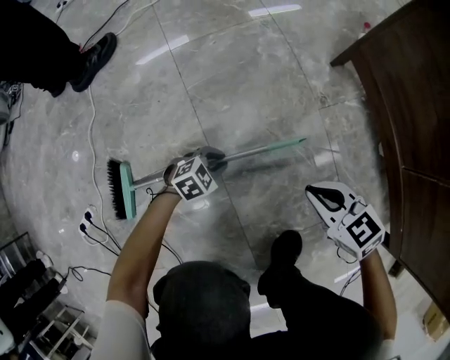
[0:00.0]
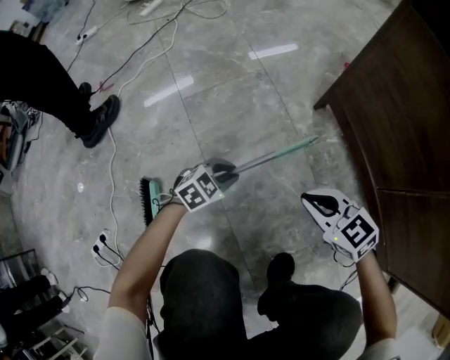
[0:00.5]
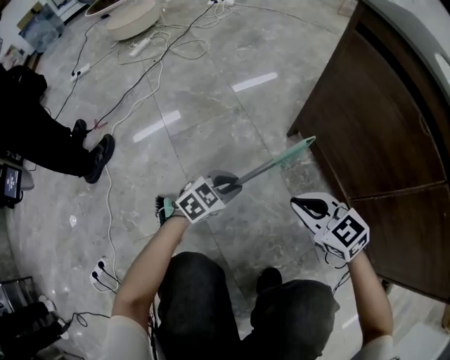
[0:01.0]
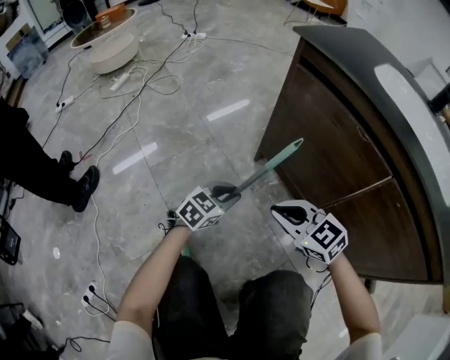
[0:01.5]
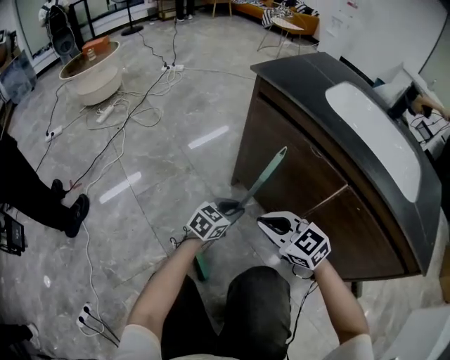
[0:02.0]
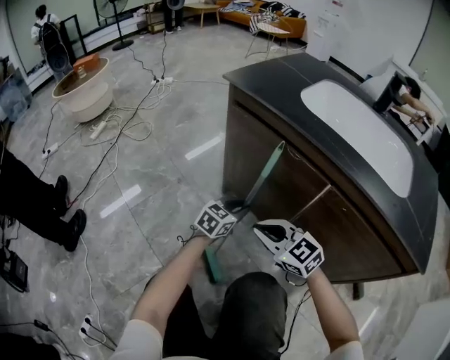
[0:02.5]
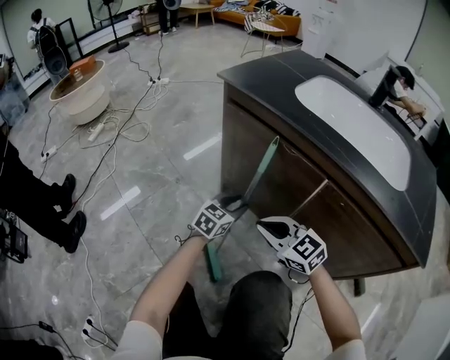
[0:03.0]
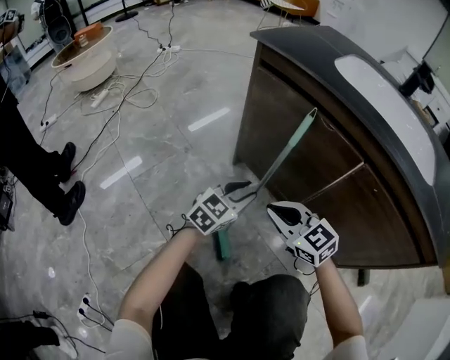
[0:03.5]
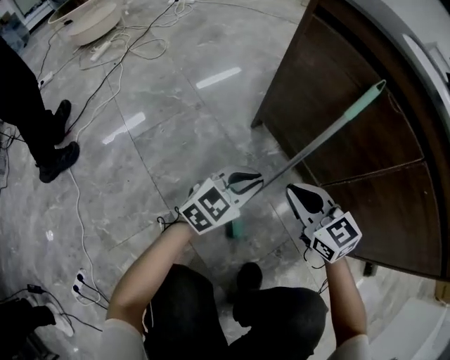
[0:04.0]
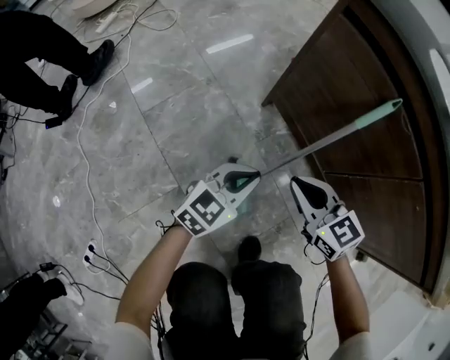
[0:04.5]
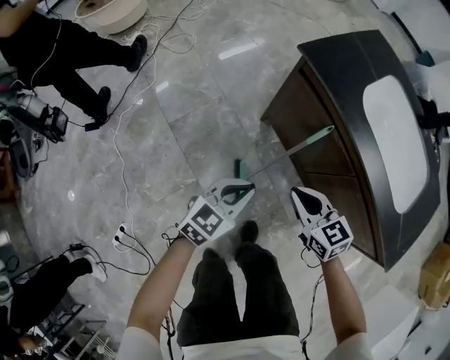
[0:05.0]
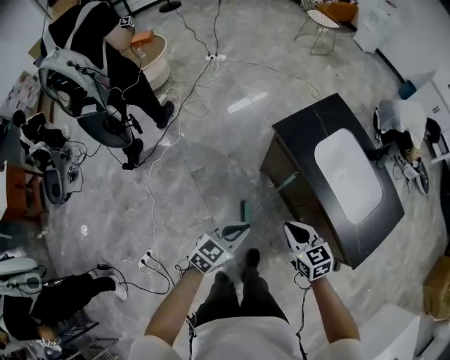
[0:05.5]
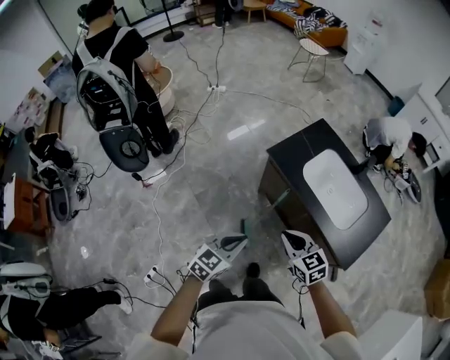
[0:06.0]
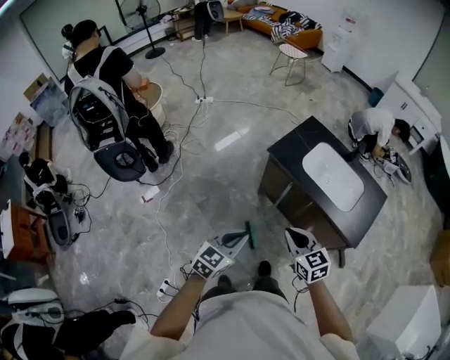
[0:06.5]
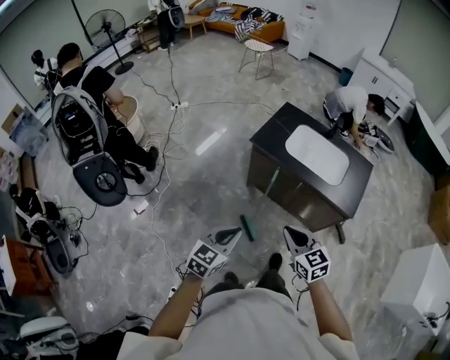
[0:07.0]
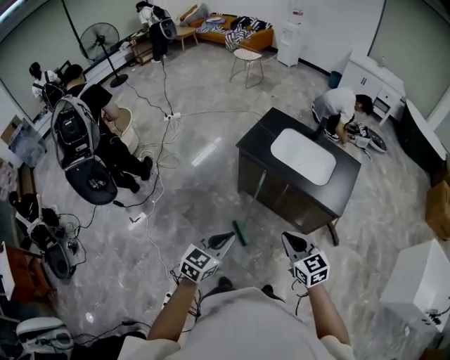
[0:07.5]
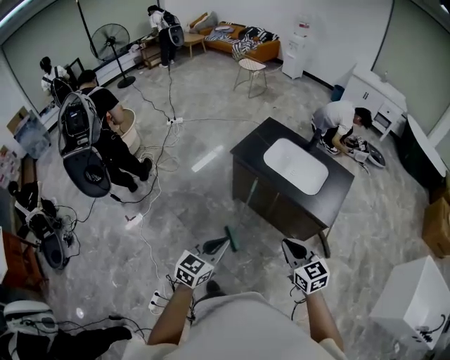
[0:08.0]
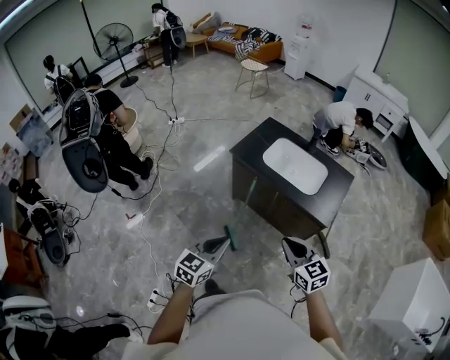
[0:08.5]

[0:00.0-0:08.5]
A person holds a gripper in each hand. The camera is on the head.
0:00.0 to 0:02.0: The two grippers go about 35 cm upward. The left gripper points its fingers roughly 30 degrees further upward; the right gripper rotates about 30 degrees.
0:02.0 to 0:04.0: The right gripper shifts some 10 cm downward; the left gripper moves roughly 5 cm to the right and comes back.
0:04.0 to 0:06.5: Both grippers move upward, approximately 70 cm.
0:06.5 to 0:08.5: The left gripper shifts approximately 20 cm backward and upward; the right gripper is displaced backward, to the right and upward by about 25 cm.

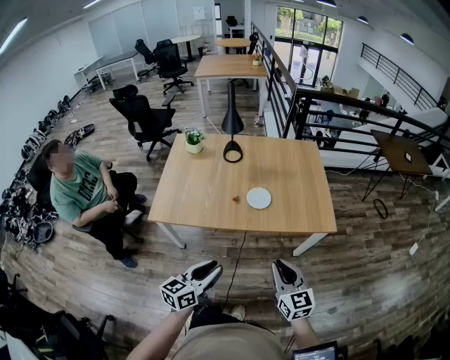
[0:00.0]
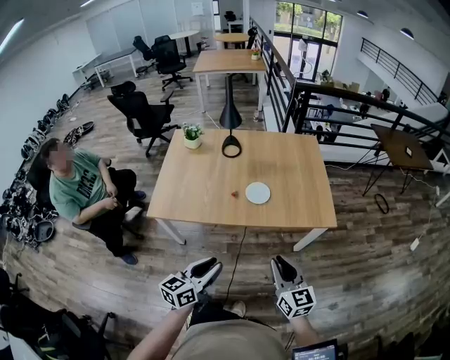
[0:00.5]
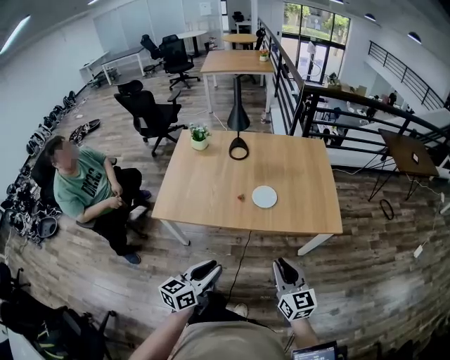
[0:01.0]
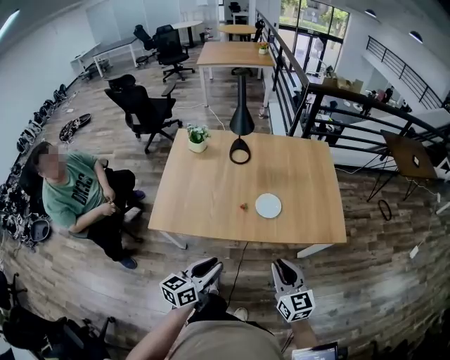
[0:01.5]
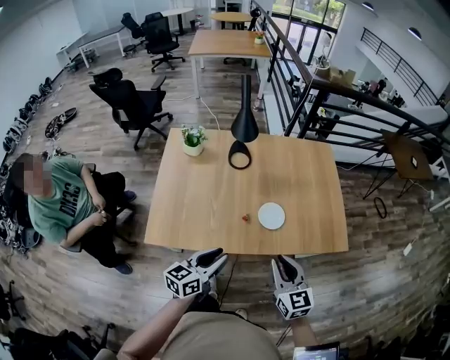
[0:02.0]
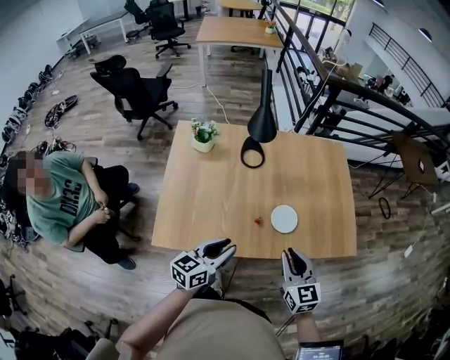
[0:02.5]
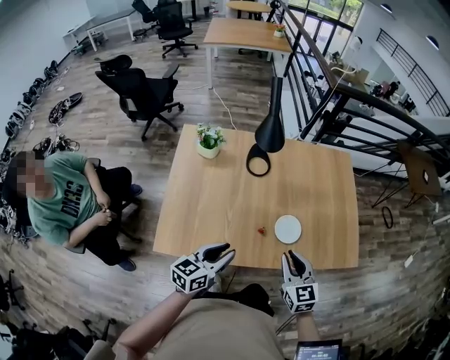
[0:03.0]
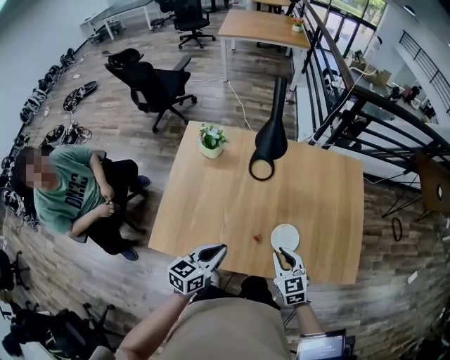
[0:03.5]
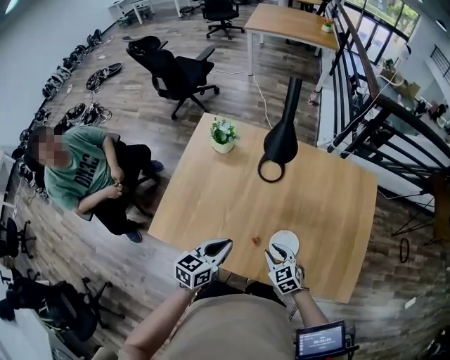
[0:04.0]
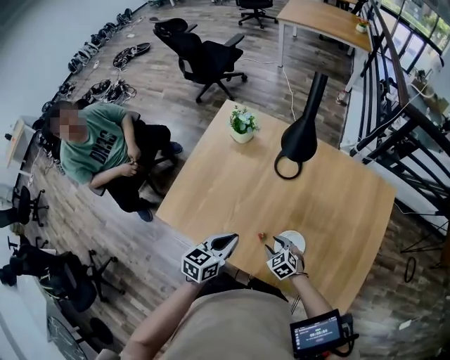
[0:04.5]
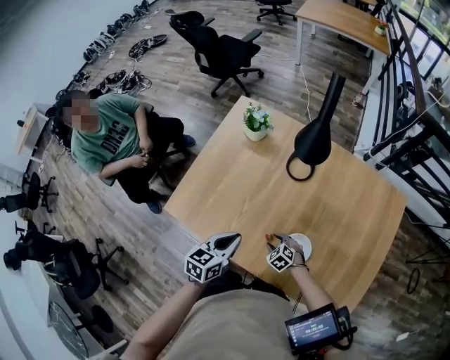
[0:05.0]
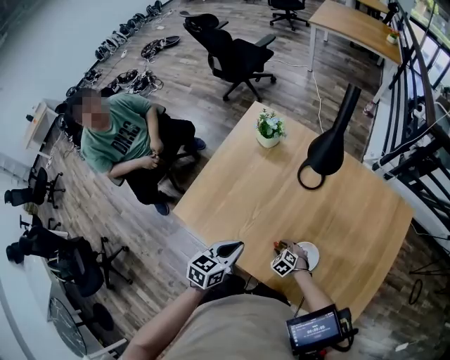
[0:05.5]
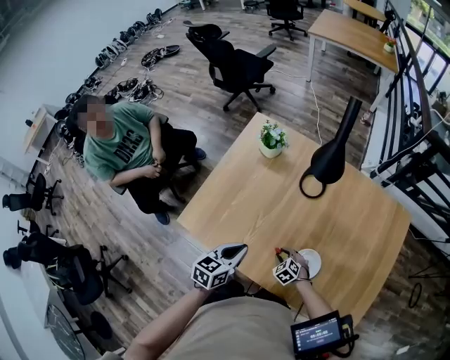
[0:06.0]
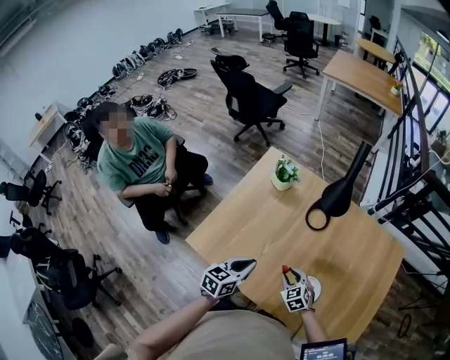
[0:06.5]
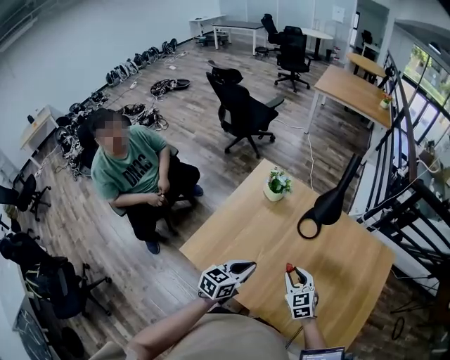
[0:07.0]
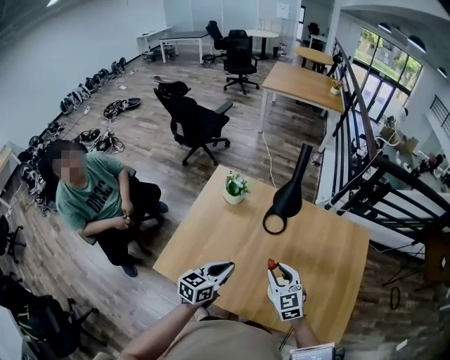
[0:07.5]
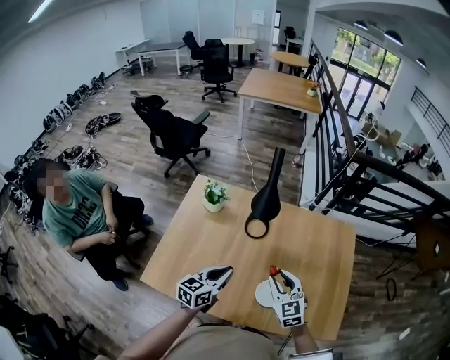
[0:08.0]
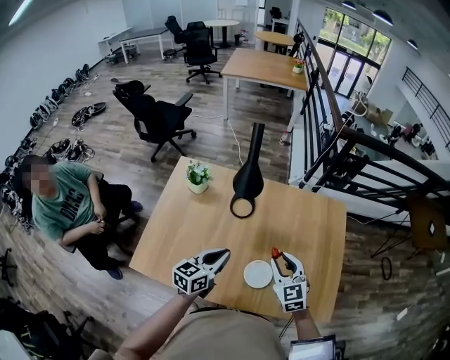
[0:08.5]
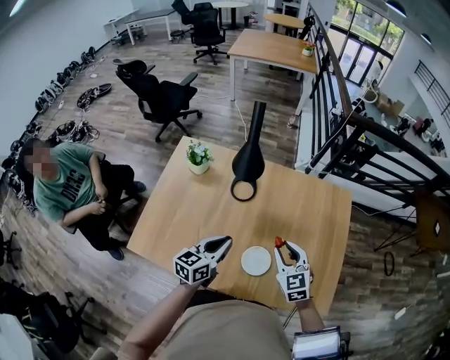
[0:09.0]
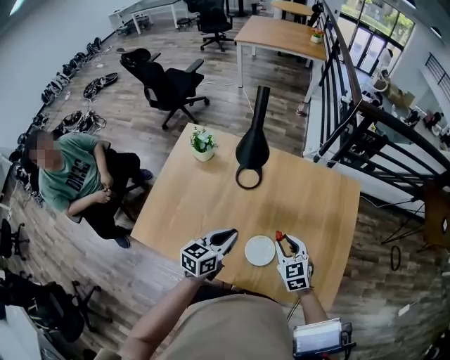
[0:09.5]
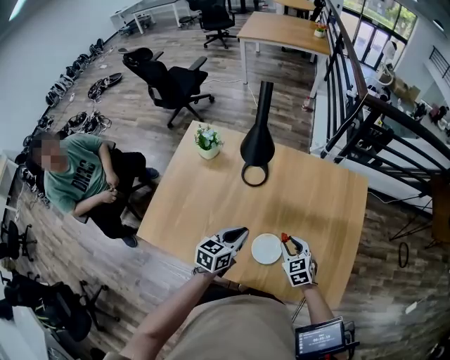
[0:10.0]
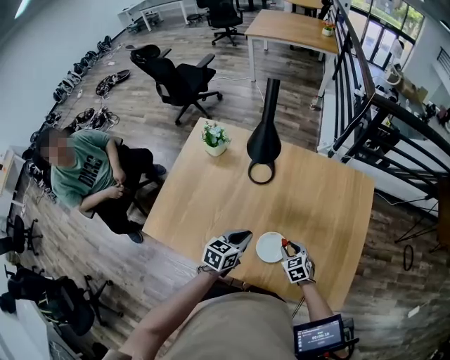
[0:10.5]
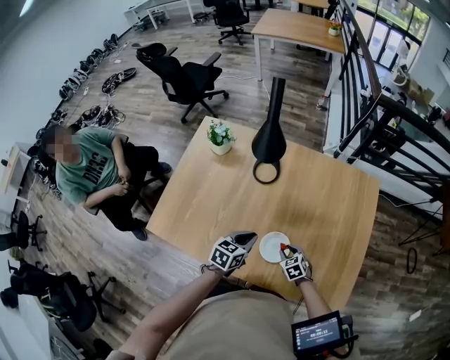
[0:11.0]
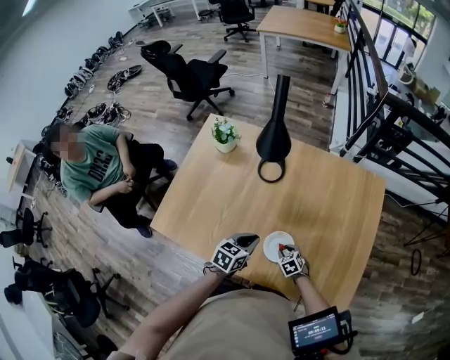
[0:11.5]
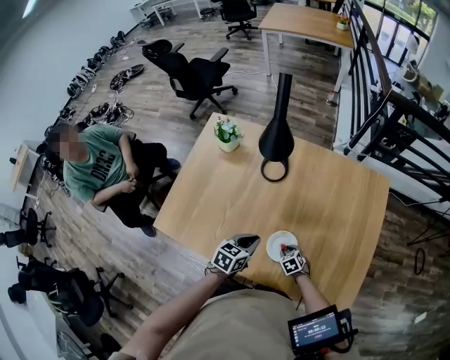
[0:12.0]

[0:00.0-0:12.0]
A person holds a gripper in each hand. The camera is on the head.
0:00.0 to 0:02.0: The grippers both shift forward and to the left by about 25 cm.
0:02.0 to 0:04.0: The left gripper changes place by approximately 20 cm, changes its angle by some 20 degrees, and closes up. Meanwhile the right gripper changes place by approximately 30 cm, and rotates approximately 40 degrees.
0:04.0 to 0:06.0: The right gripper is displaced downward by about 15 cm, and rotates roughly 30 degrees. Meanwhile the left gripper moves roughly 5 cm.
0:06.0 to 0:08.0: The left gripper is displaced upward, to the right and forward by approximately 10 cm, and turns by approximately 20 degrees. Meanwhile the right gripper heads upward, covering approximately 35 cm, and tips its fingers upward by approximately 40 degrees.
0:08.0 to 0:10.0: The left gripper moves to the right and downward, approximately 15 cm. The right gripper travels downward and to the right by roughly 20 cm.
0:10.0 to 0:12.0: The left gripper travels downward by about 10 cm, while the right gripper moves downward, some 20 cm, and changes its angle by about 30 degrees.

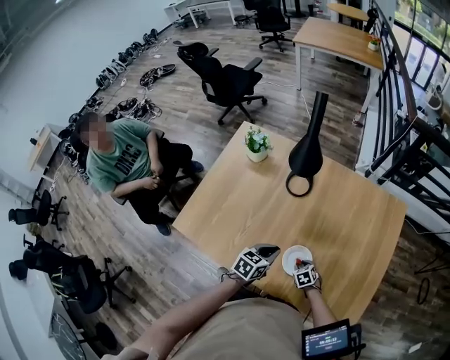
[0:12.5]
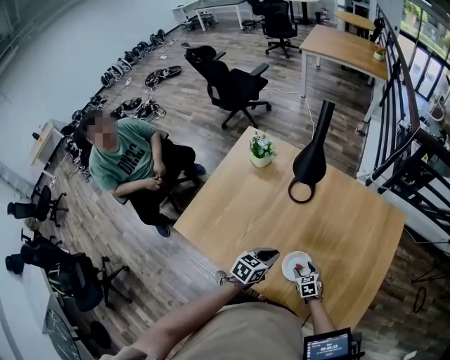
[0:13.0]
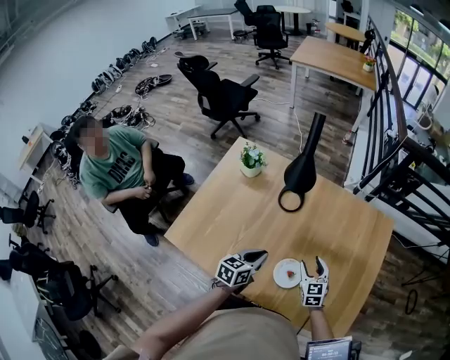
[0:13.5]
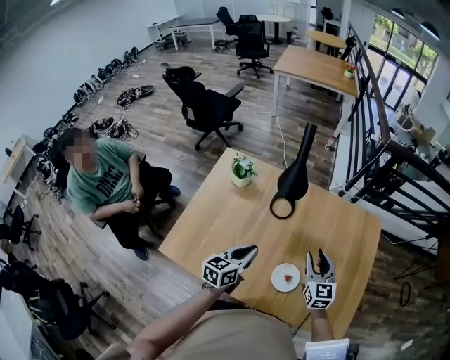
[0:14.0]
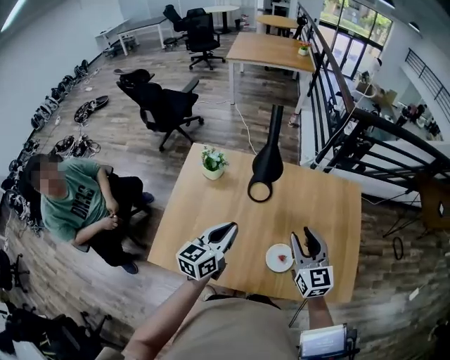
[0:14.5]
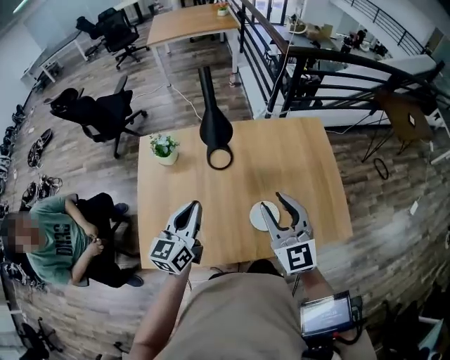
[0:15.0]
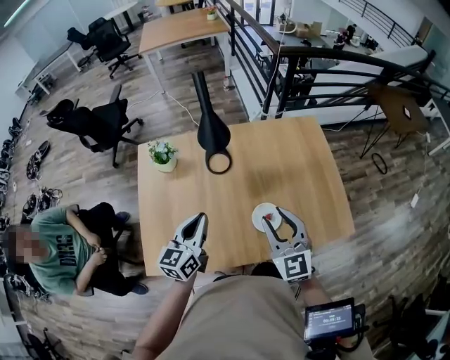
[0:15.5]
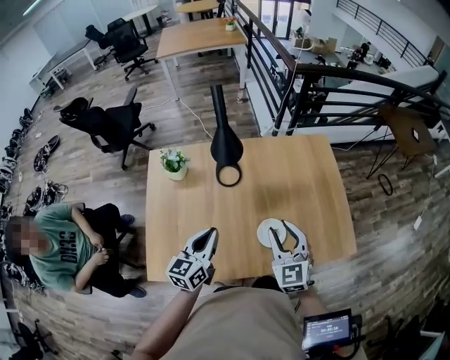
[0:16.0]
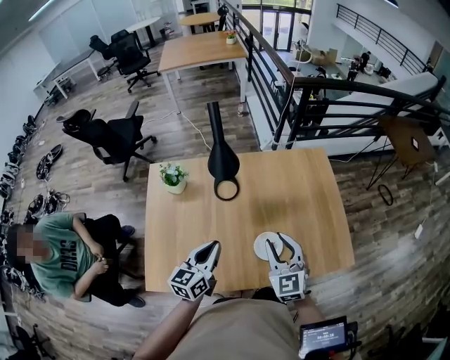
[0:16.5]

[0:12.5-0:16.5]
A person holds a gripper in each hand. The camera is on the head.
0:12.5 to 0:14.5: The left gripper is displaced upward and to the left by approximately 25 cm, and turns by roughly 30 degrees, while the right gripper heads upward, covering some 50 cm, and angles its fingers upward, by approximately 60 degrees.
0:14.5 to 0:16.5: The right gripper shifts roughly 5 cm backward. The left gripper changes place by about 5 cm.

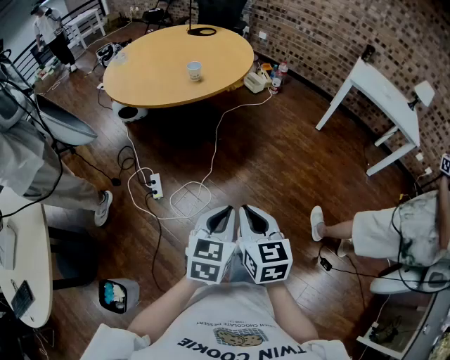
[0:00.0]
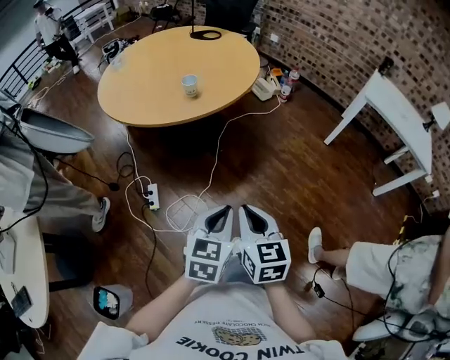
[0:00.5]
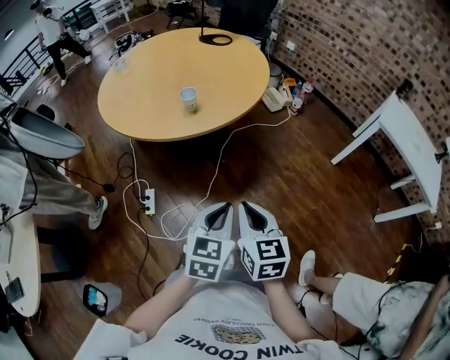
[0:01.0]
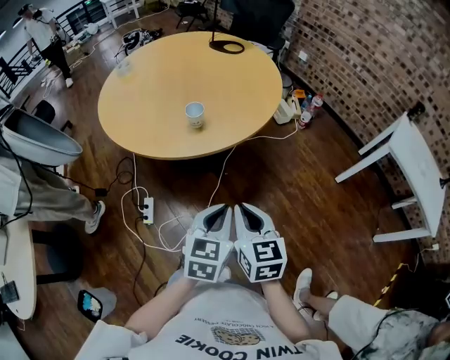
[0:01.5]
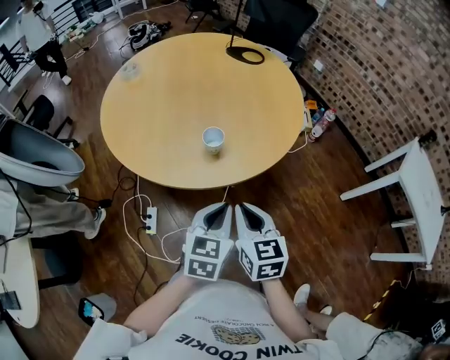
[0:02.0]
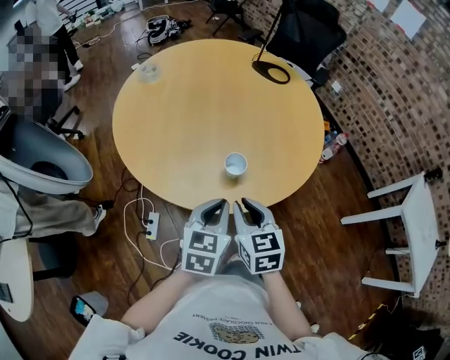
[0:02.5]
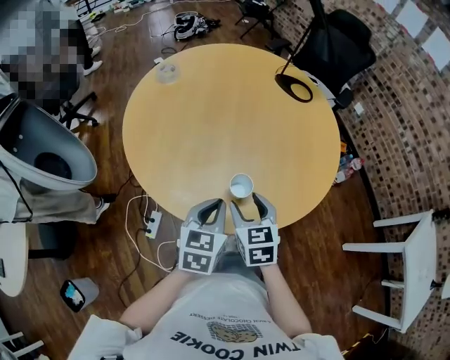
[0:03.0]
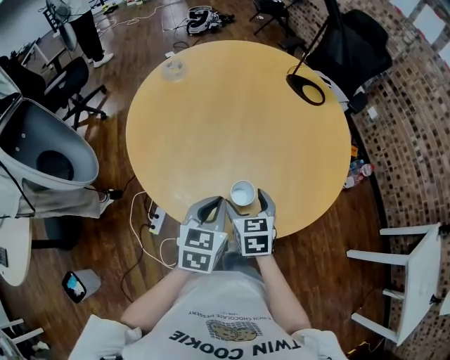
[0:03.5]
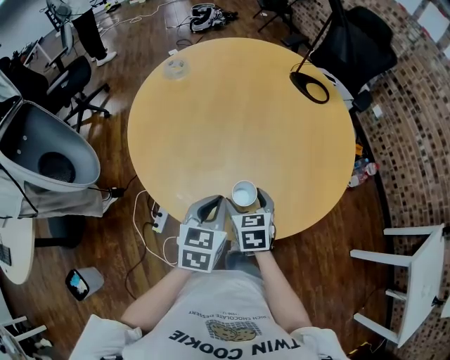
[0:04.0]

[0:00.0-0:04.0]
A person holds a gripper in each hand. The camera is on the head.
0:00.0 to 0:02.0: Both grippers are carried forward, about 50 cm.
0:02.0 to 0:04.0: The left gripper heads forward, covering roughly 20 cm, and changes its angle by roughly 20 degrees; the right gripper travels forward and downward by roughly 25 cm, changes its angle by some 20 degrees, and opens.
